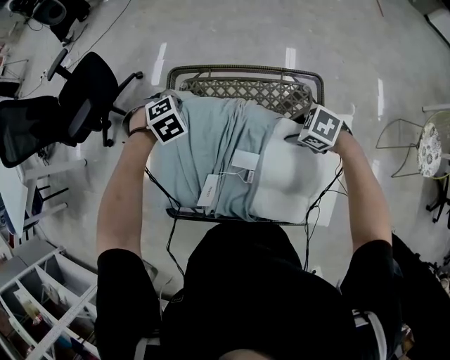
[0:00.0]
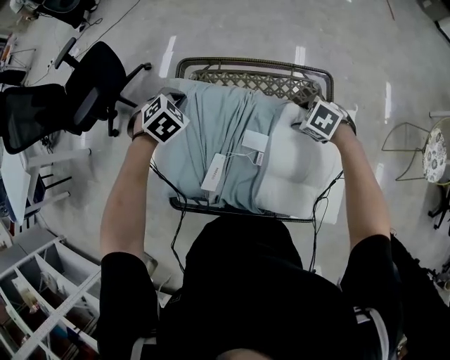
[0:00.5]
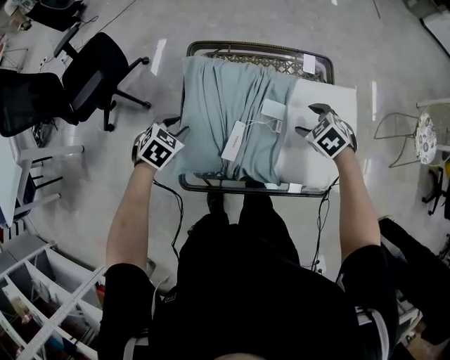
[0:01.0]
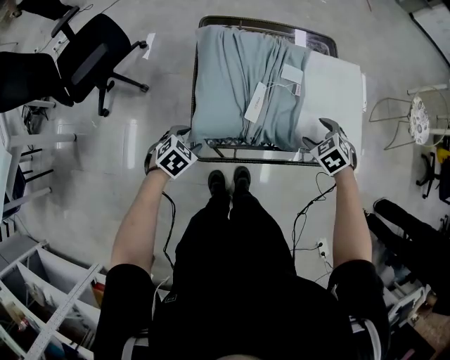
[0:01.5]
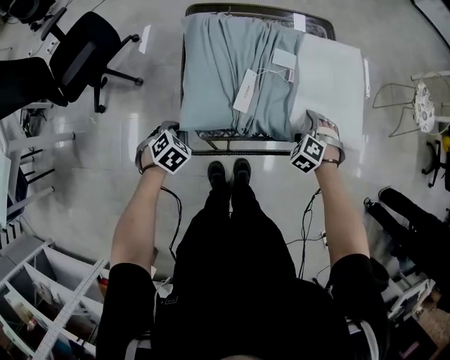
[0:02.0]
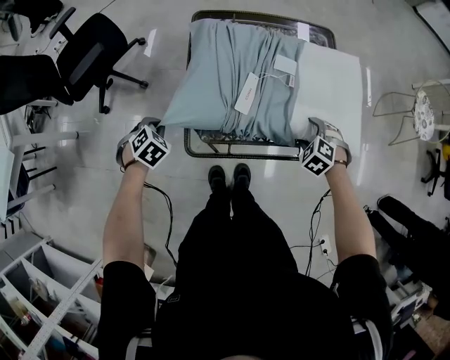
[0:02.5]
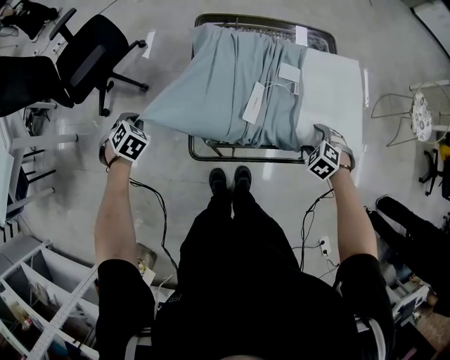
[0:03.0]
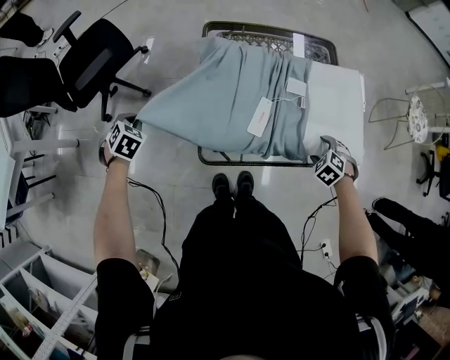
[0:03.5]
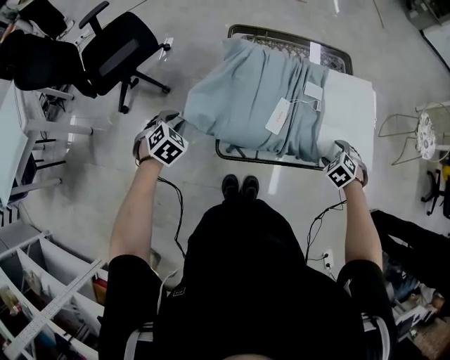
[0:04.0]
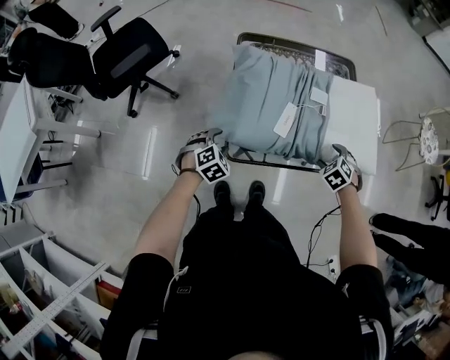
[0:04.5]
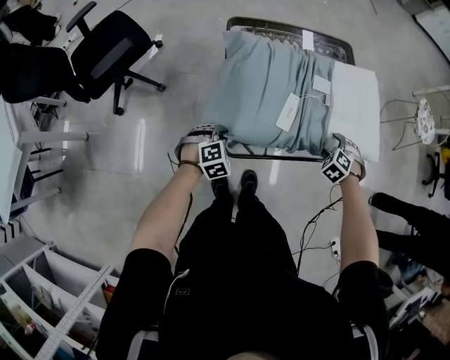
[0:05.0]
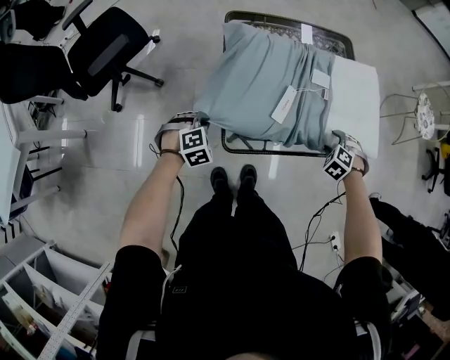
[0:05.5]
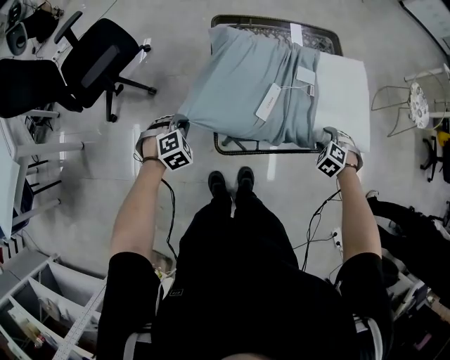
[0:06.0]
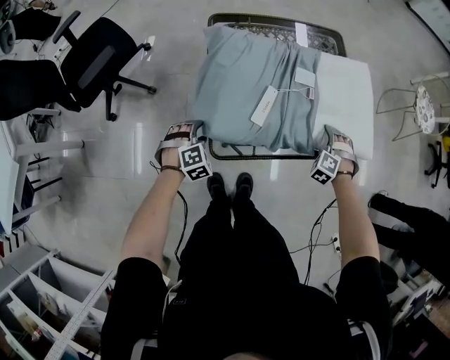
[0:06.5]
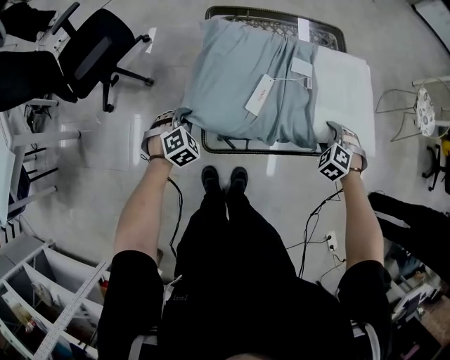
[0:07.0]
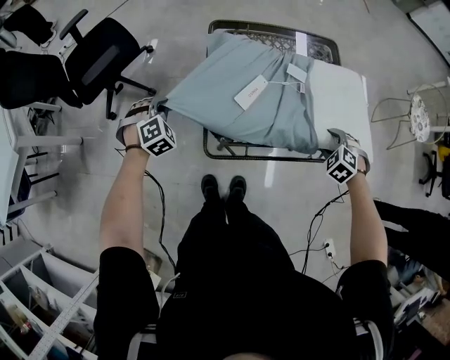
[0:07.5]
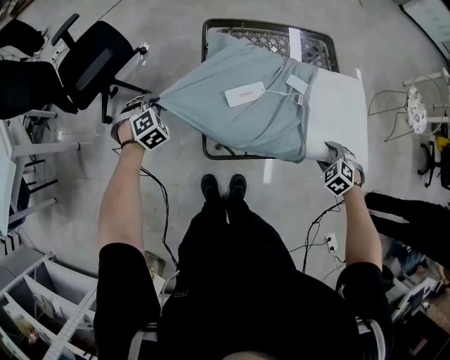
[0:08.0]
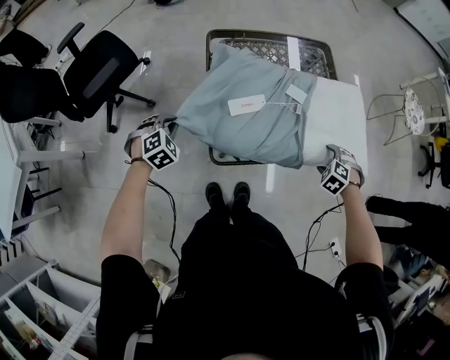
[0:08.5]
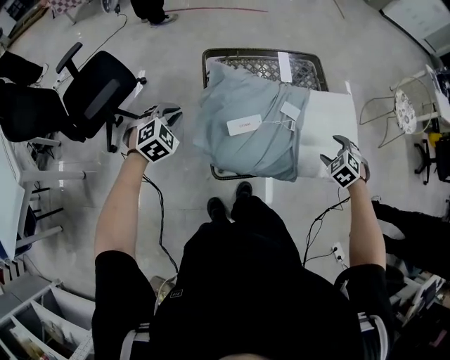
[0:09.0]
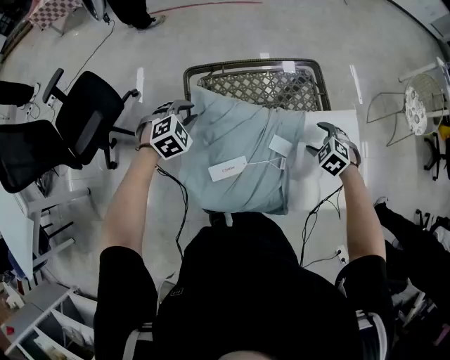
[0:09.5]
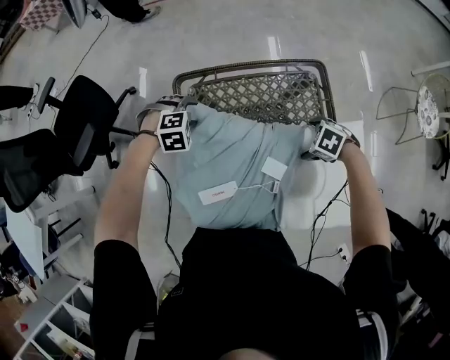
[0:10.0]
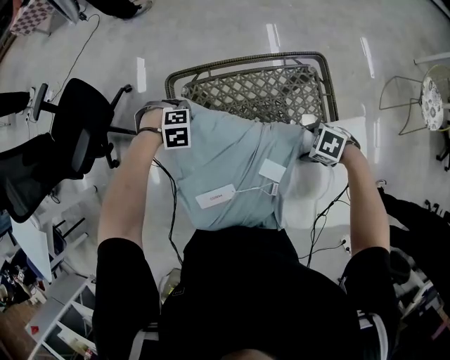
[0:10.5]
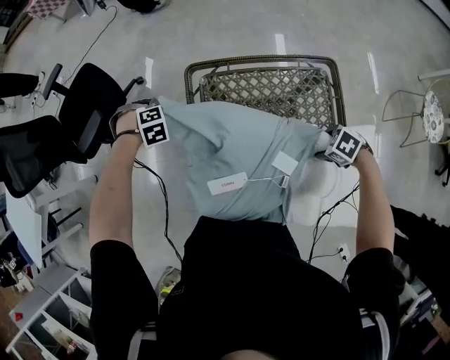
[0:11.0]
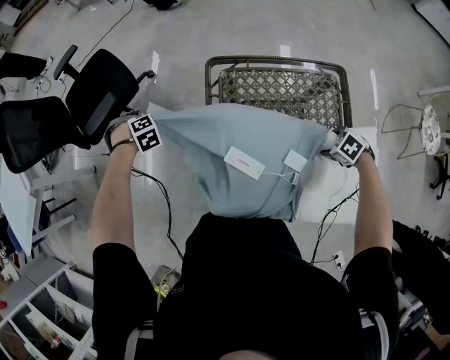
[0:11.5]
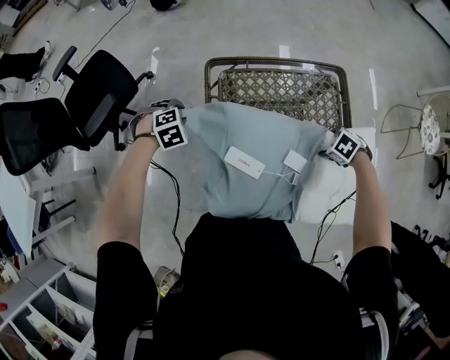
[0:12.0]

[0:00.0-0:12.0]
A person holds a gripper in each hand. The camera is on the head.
0:00.0 to 0:02.0: The left gripper ends up roughly 35 cm from where it was, turns by some 20 degrees, and opens, then closes once more. The right gripper changes place by roughly 25 cm, swivels some 50 degrees, and opens up.
0:02.0 to 0:04.0: The right gripper travels upward by about 5 cm, while the left gripper shifts by about 15 cm.
0:04.0 to 0:06.0: The left gripper is displaced downward by some 5 cm, goes to the right and returns, roughly 15 cm each way, swivels about 30 degrees, and opens, then closes once more.
0:06.0 to 0:08.0: The right gripper goes upward and returns, approximately 5 cm each way, and opens and closes again. The left gripper goes approximately 10 cm forward and to the left, and opens and closes again.
0:08.0 to 0:10.0: The right gripper moves approximately 10 cm upward and comes back, changes its angle by approximately 30 degrees, and opens up. The left gripper travels upward and back again, roughly 10 cm each way, rotates about 40 degrees, and opens its fingers.
0:10.0 to 0:12.0: The left gripper closes its fingers.

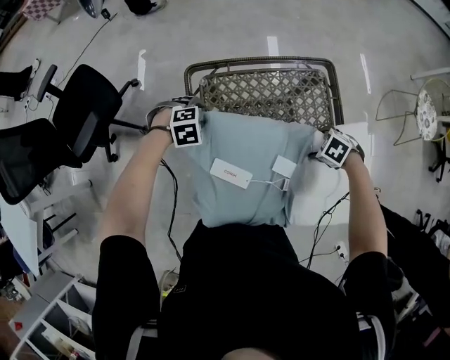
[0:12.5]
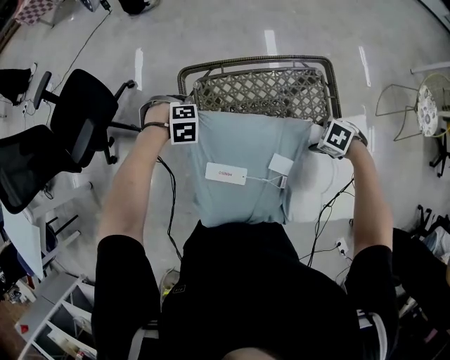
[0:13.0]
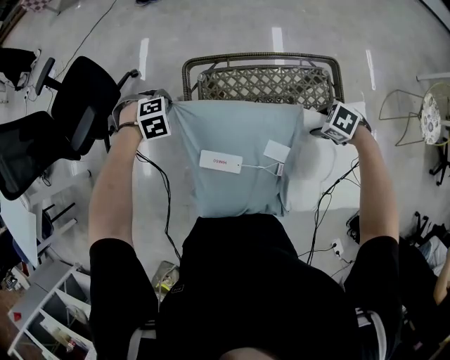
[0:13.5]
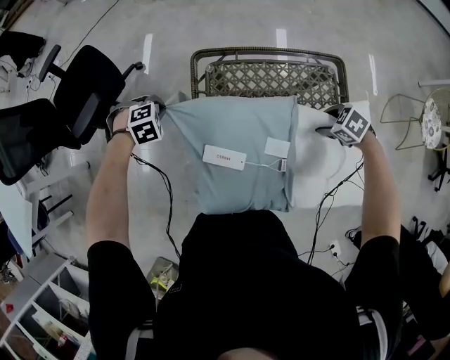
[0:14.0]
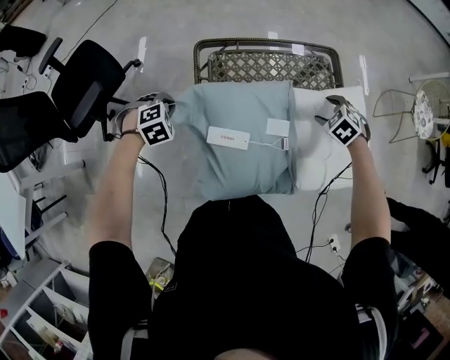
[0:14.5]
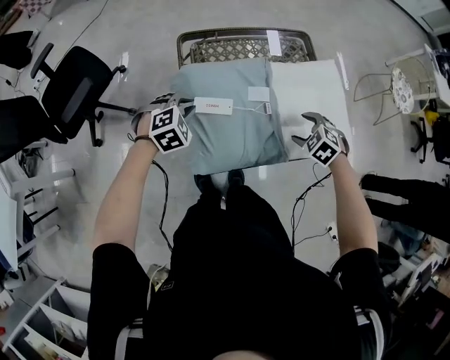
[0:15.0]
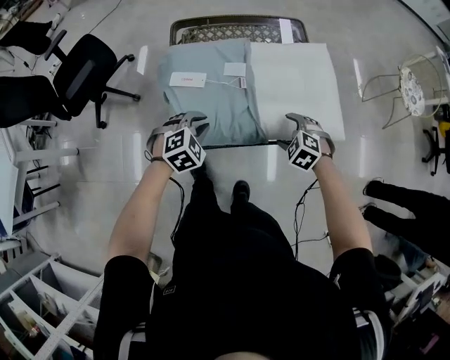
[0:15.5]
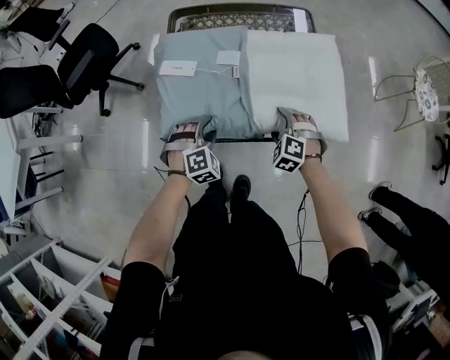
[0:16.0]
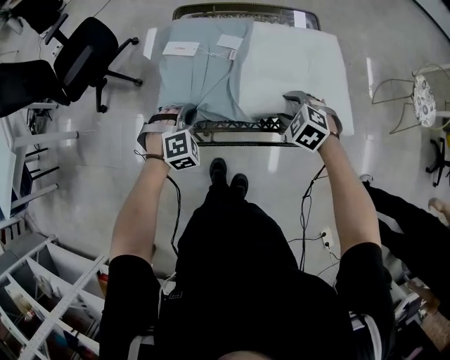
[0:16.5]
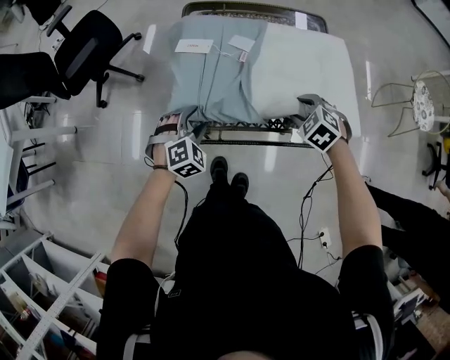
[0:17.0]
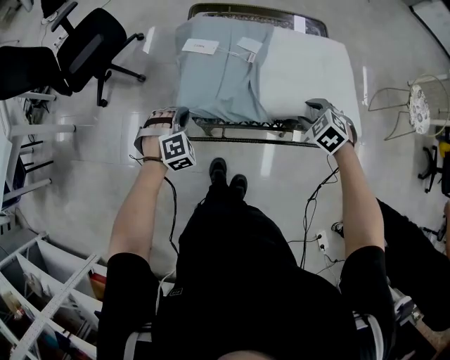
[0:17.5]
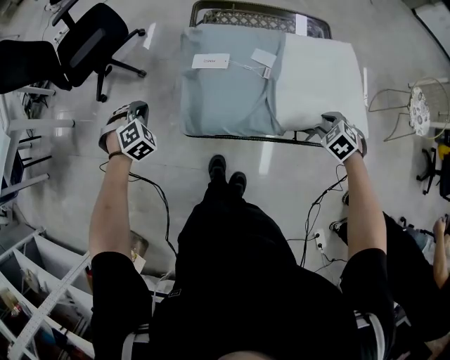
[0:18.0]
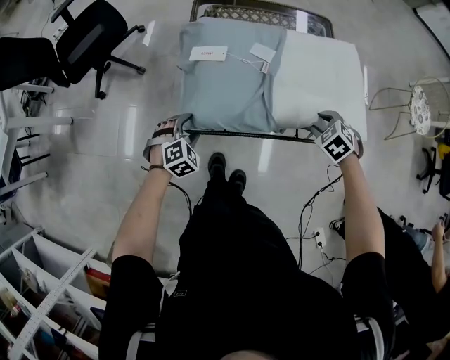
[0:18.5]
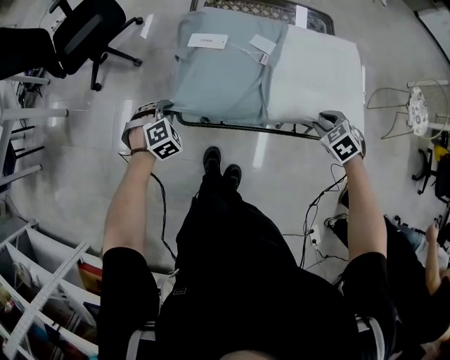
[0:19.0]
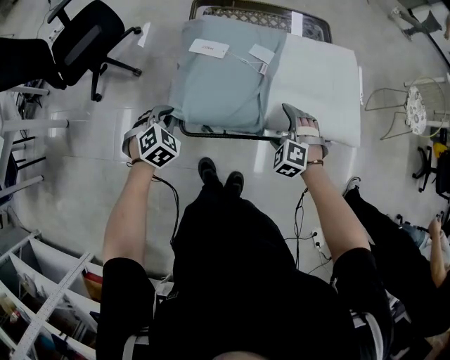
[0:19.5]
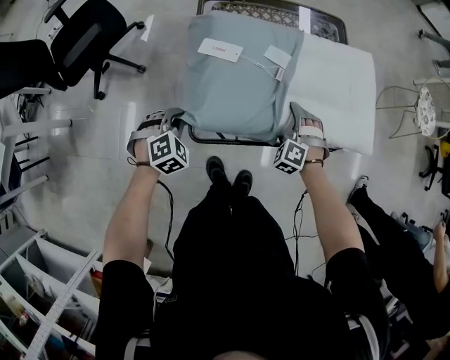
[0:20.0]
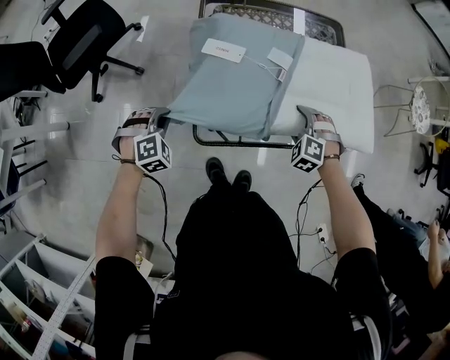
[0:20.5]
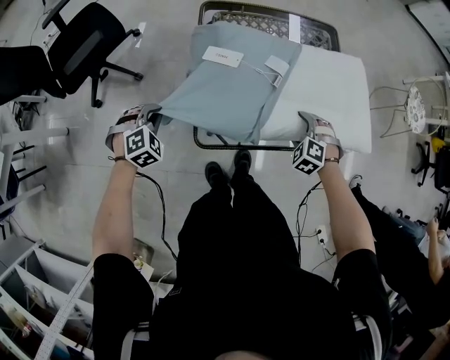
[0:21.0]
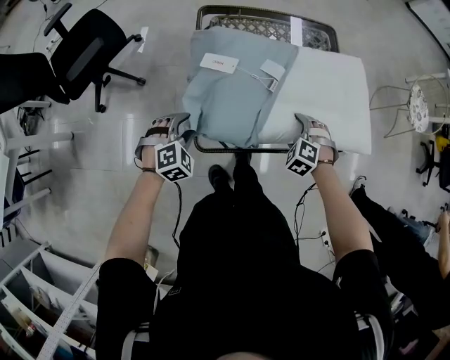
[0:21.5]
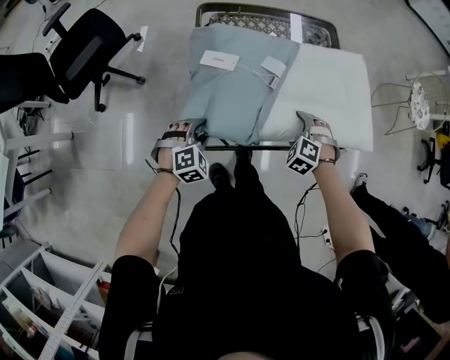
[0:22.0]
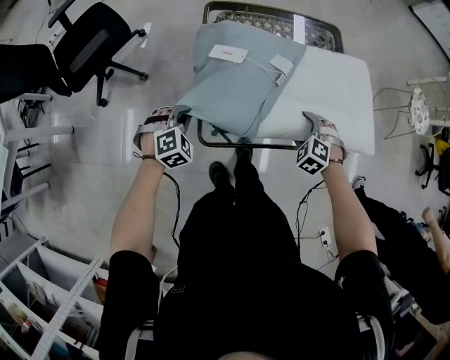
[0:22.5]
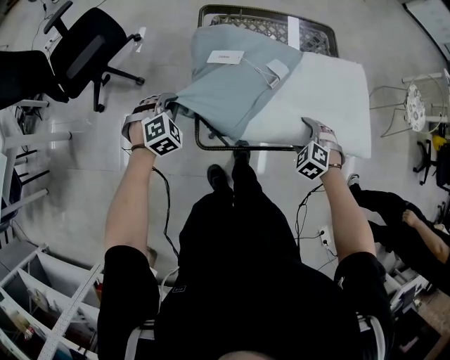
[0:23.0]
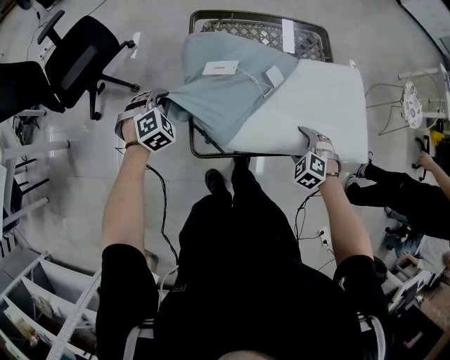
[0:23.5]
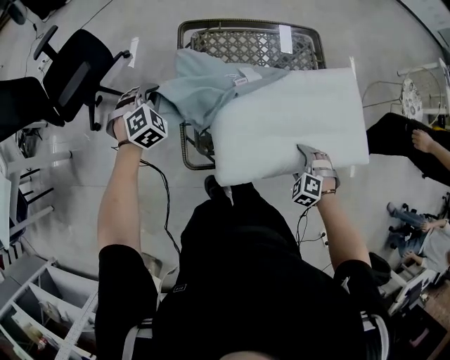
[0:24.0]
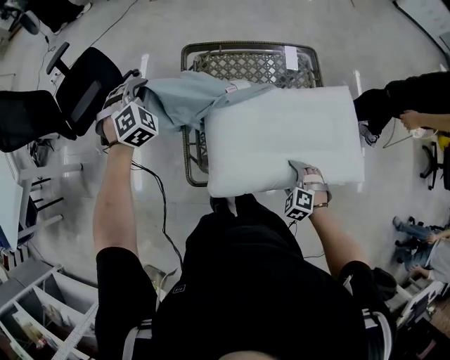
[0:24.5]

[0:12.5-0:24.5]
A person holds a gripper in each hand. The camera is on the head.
0:12.5 to 0:14.5: The right gripper moves approximately 5 cm, and swivels roughly 20 degrees. Meanwhile the left gripper shifts by approximately 15 cm, and closes up.
0:14.5 to 0:16.5: The left gripper moves approximately 5 cm upward and comes back, turns by roughly 20 degrees, and opens, then closes again, while the right gripper moves roughly 5 cm downward and comes back, and changes its angle by roughly 20 degrees.
0:16.5 to 0:18.5: The right gripper shifts approximately 10 cm backward and to the right; the left gripper moves to the left, backward and downward, approximately 15 cm, turns by approximately 20 degrees, and opens up.
0:18.5 to 0:20.5: The left gripper is displaced to the left and forward by approximately 15 cm, and closes up, while the right gripper heads to the left, covering about 10 cm, rotates about 30 degrees, and opens up.
0:20.5 to 0:22.5: The left gripper travels to the right and back again, some 10 cm each way, and opens, then closes once more.
0:22.5 to 0:24.5: The right gripper moves backward, roughly 5 cm; the left gripper shifts approximately 30 cm forward and upward, and changes its angle by some 20 degrees.

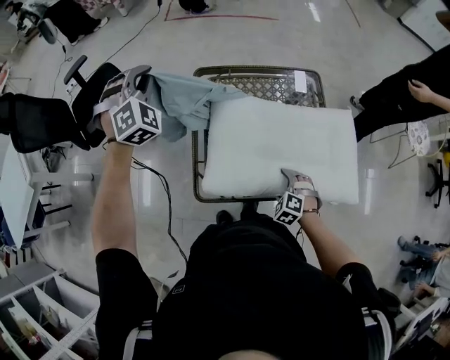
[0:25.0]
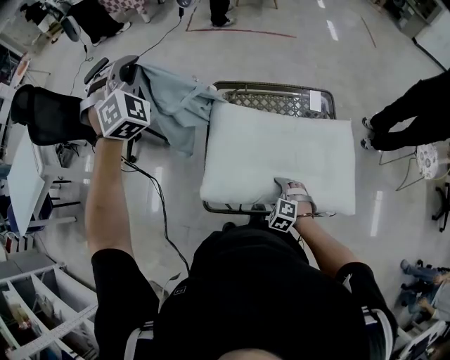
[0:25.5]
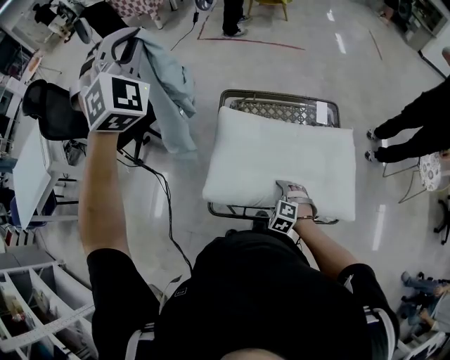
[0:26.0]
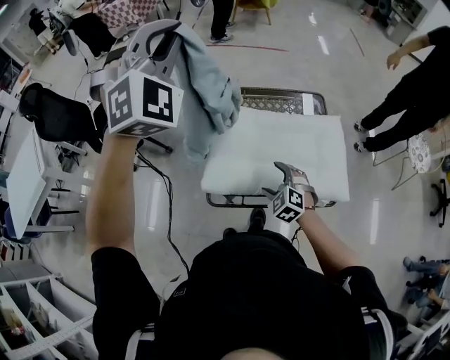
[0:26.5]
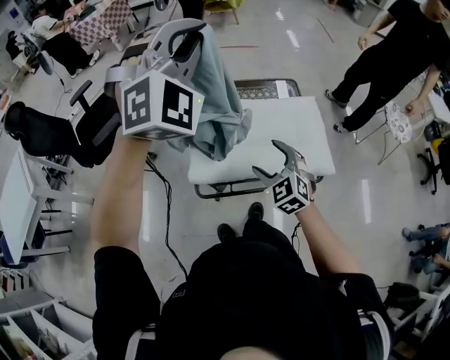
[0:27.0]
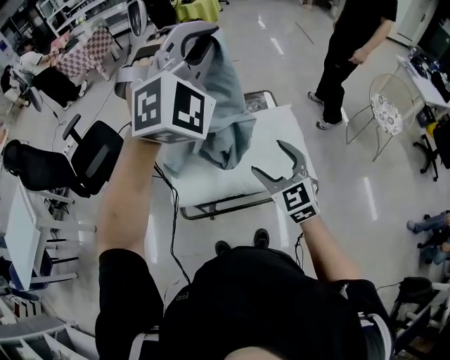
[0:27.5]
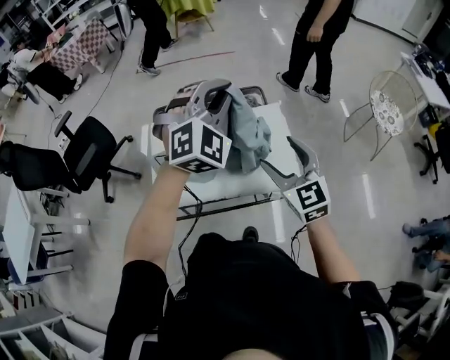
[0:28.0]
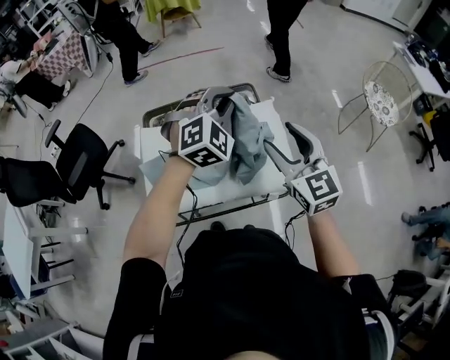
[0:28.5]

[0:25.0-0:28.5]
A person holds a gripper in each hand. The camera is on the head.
0:25.0 to 0:27.0: The right gripper is displaced upward by roughly 25 cm, and angles its fingers upward, by some 30 degrees, while the left gripper shifts approximately 35 cm upward, backward and to the right, and rotates approximately 30 degrees.
0:27.0 to 0:28.5: The right gripper travels to the right and upward by some 25 cm, and turns by about 40 degrees; the left gripper travels to the right and downward by roughly 35 cm, and rotates approximately 30 degrees.
